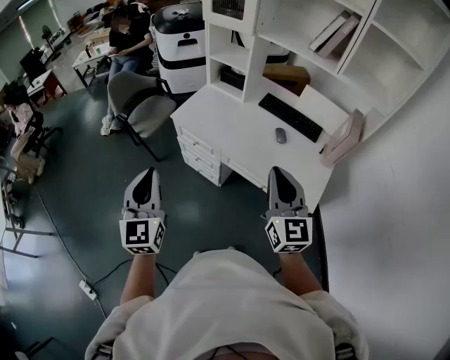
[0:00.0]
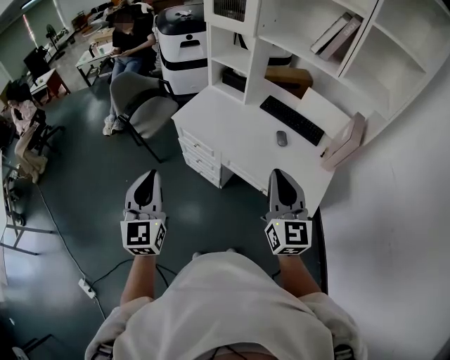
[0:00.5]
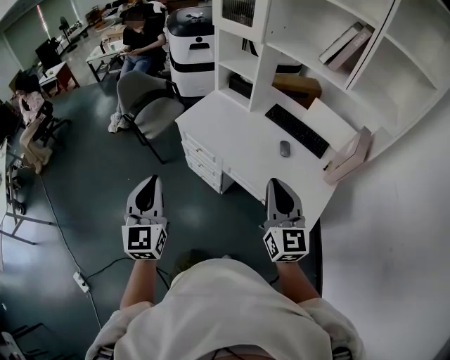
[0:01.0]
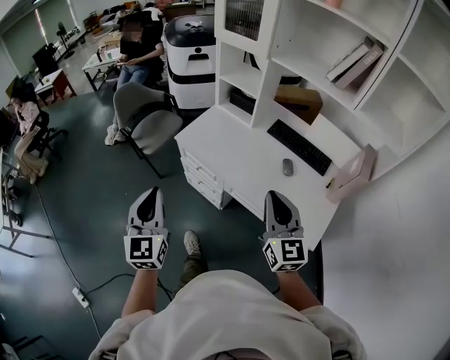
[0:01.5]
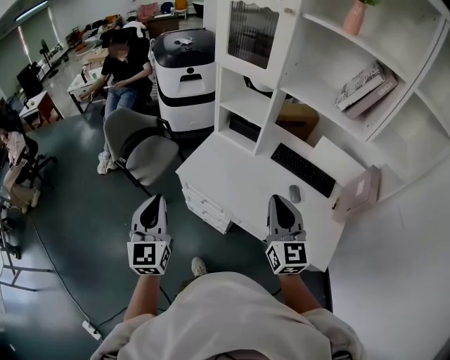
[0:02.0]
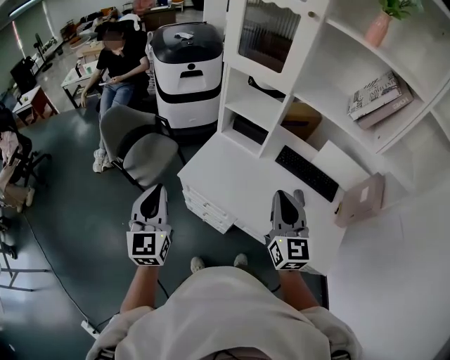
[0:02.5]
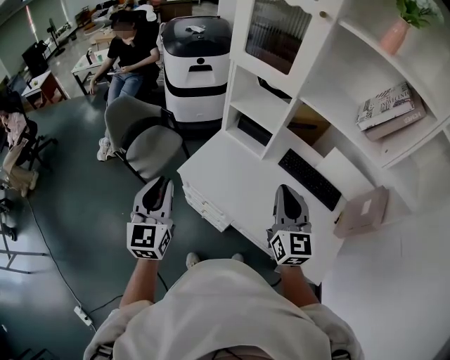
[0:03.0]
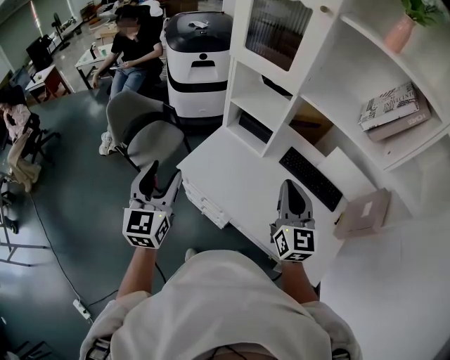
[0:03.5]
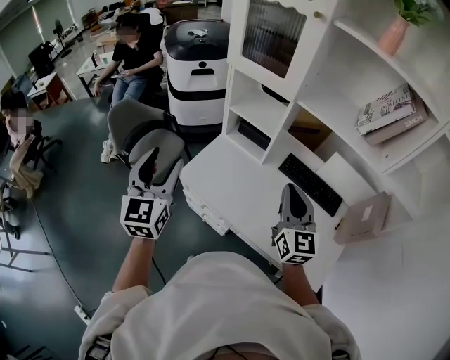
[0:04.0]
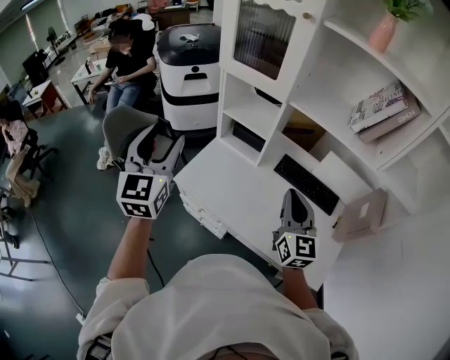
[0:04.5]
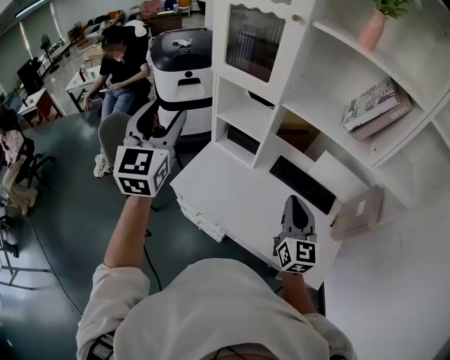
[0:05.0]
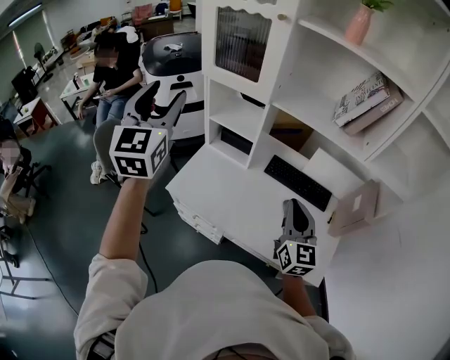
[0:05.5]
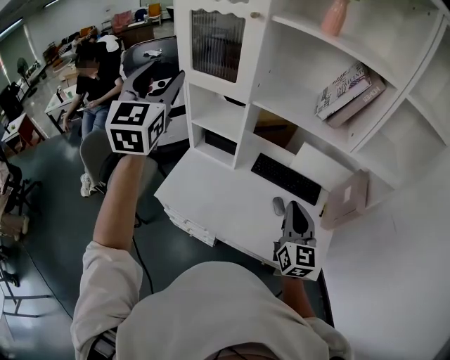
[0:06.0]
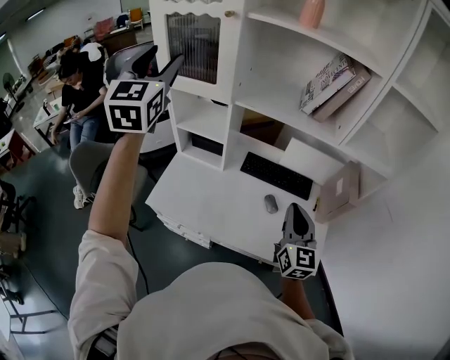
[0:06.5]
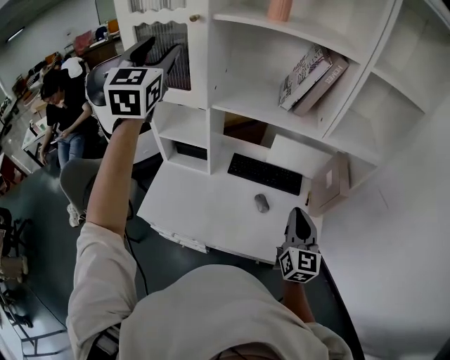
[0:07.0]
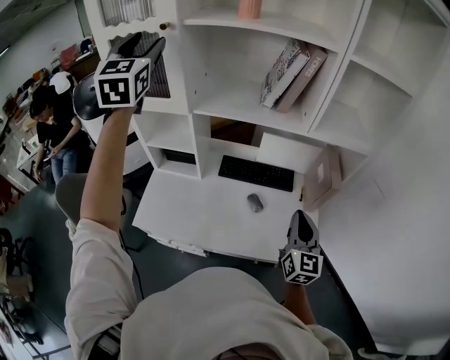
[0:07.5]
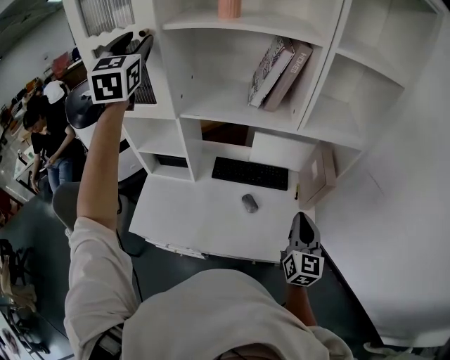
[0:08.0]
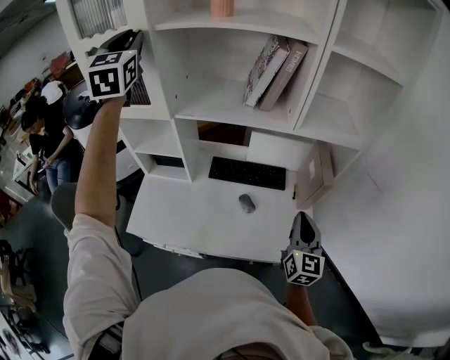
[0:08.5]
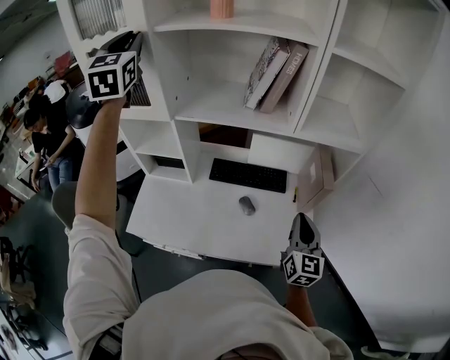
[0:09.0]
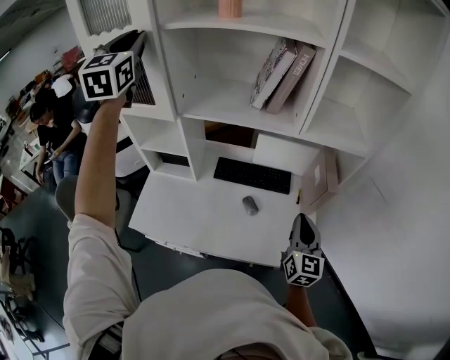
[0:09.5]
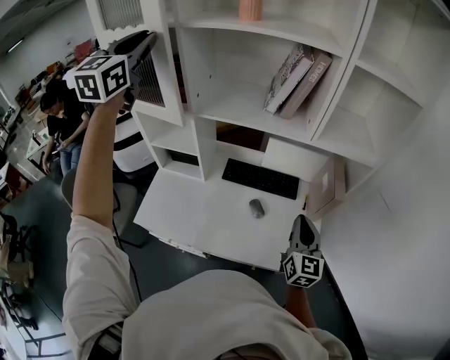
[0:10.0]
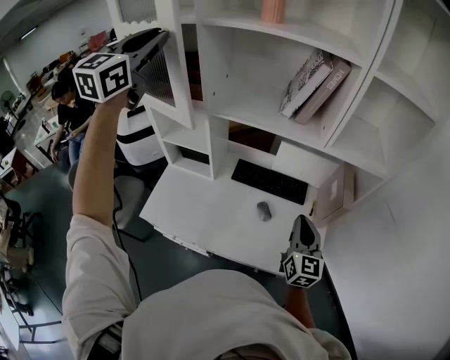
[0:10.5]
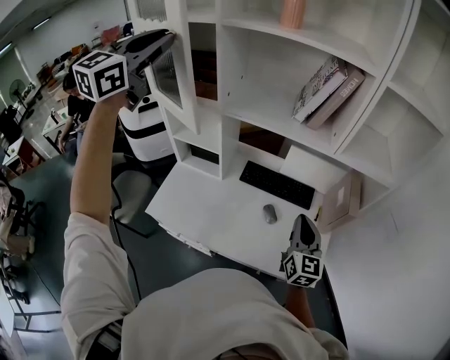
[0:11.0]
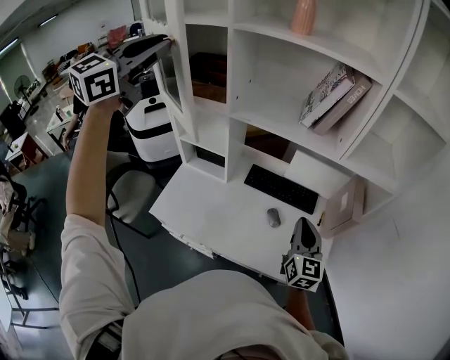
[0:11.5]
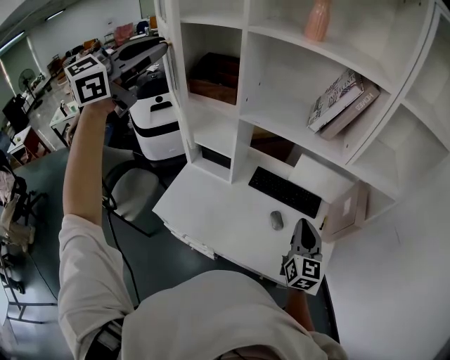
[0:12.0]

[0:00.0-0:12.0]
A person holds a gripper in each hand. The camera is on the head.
0:00.0 to 0:02.0: The two grippers go approximately 25 cm forward.
0:02.0 to 0:04.0: Both grippers move forward, some 15 cm. The left gripper opens its fingers.
0:04.0 to 0:06.0: The left gripper is displaced upward, forward and to the right by about 25 cm, while the right gripper shifts some 10 cm to the right and backward.
0:06.0 to 0:08.0: The left gripper shifts some 25 cm forward, to the right and upward; the right gripper moves to the right, about 15 cm, and rotates some 20 degrees.
0:08.0 to 0:10.0: The left gripper closes its fingers.
0:10.0 to 0:12.0: The left gripper travels backward and to the left by about 15 cm, and changes its angle by about 20 degrees; the right gripper is displaced to the left by approximately 10 cm.

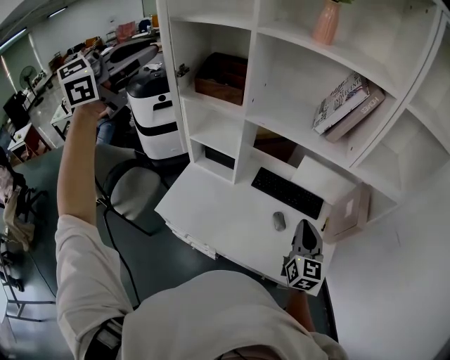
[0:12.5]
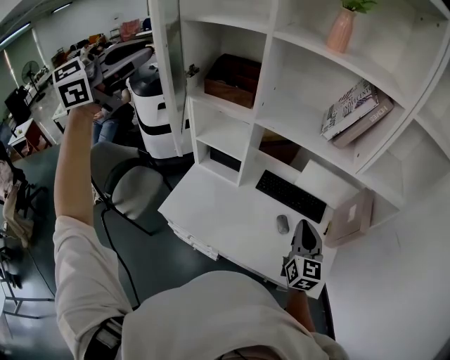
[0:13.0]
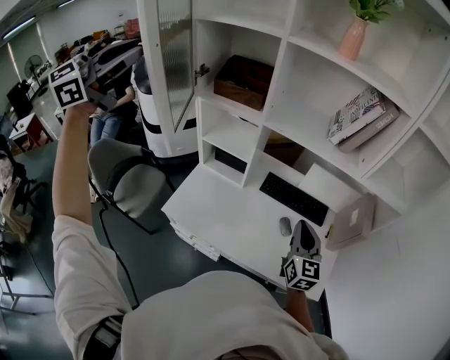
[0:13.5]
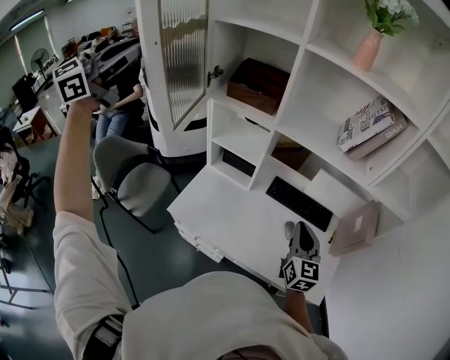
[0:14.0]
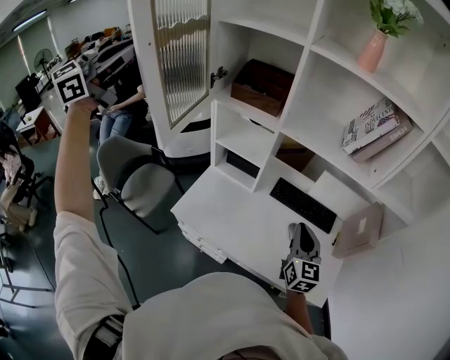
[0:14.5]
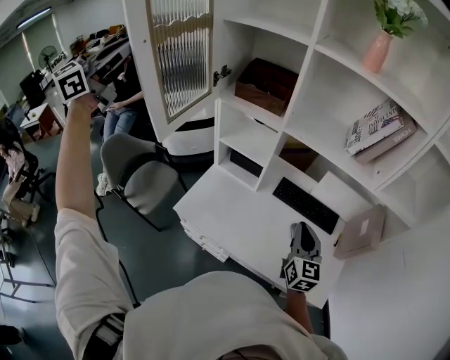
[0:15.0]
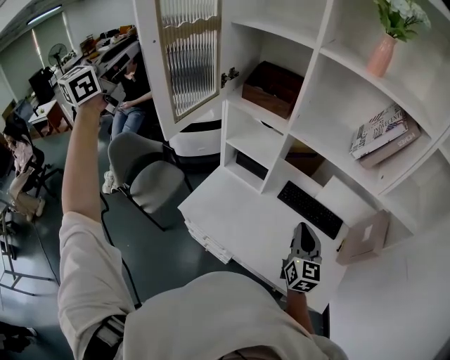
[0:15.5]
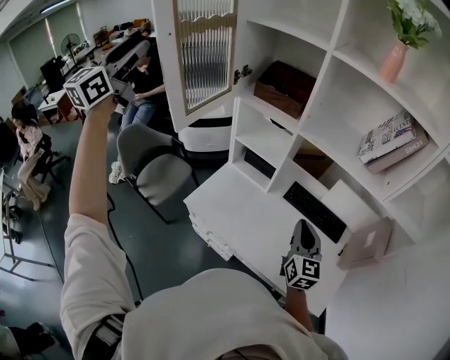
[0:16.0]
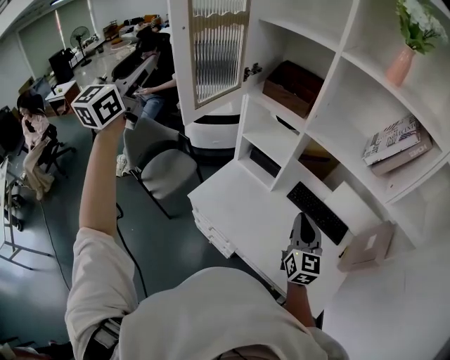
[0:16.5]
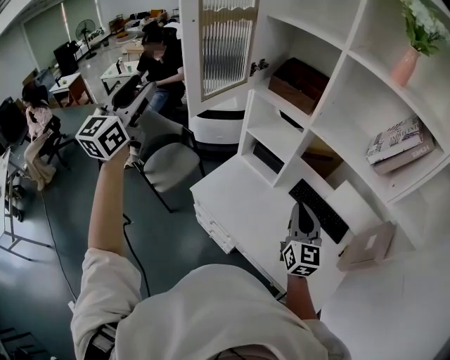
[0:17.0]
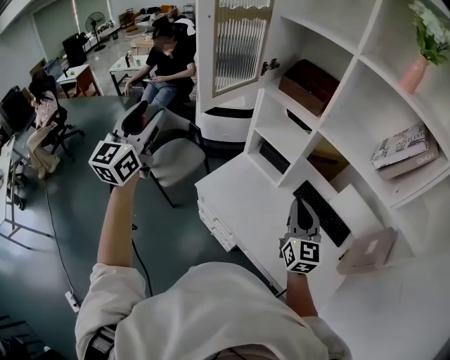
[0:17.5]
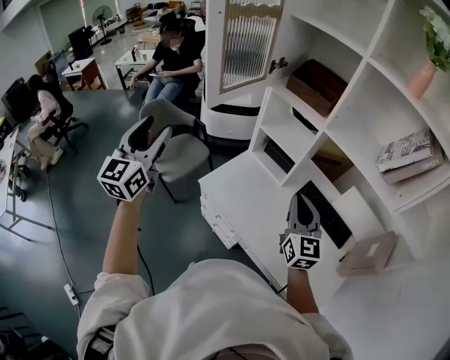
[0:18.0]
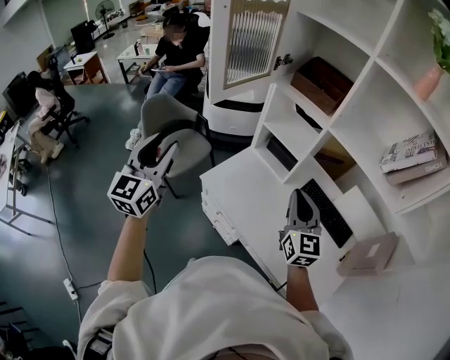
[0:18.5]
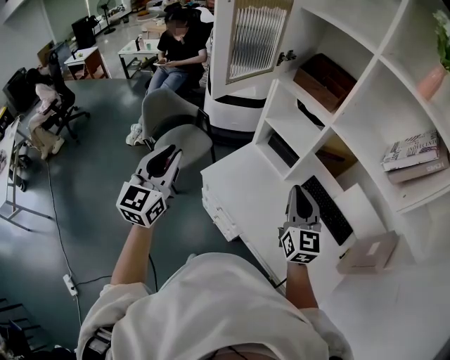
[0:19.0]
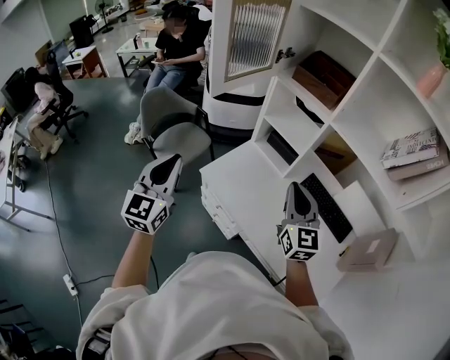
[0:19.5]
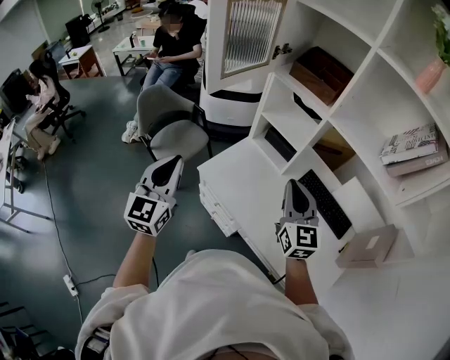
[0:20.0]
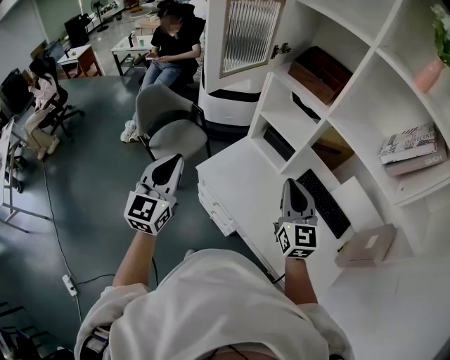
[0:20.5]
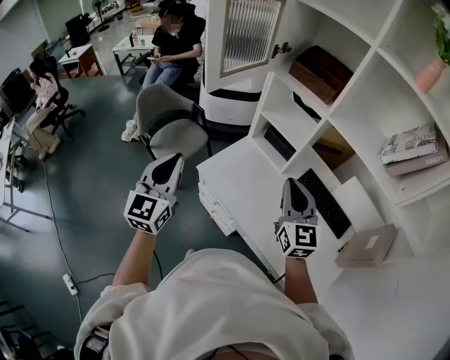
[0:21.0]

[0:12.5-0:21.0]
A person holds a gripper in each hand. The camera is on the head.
0:12.5 to 0:14.5: The right gripper heads to the left, covering roughly 10 cm. Meanwhile the left gripper moves to the left, approximately 15 cm.
0:14.5 to 0:16.5: The right gripper moves to the left, some 5 cm. The left gripper travels backward by approximately 10 cm, changes its angle by about 40 degrees, and opens its fingers.
0:16.5 to 0:19.0: The right gripper travels to the left by approximately 10 cm, while the left gripper goes about 30 cm downward and backward, and closes its fingers.
0:19.0 to 0:21.0: The grippers move only a little.

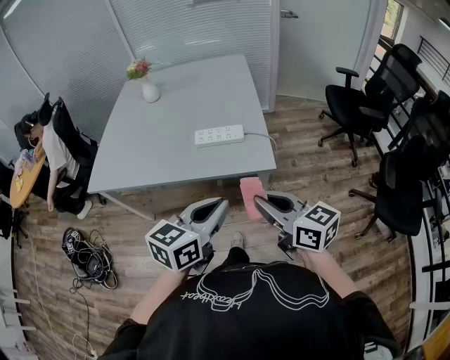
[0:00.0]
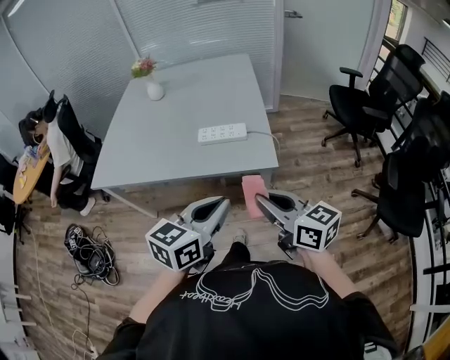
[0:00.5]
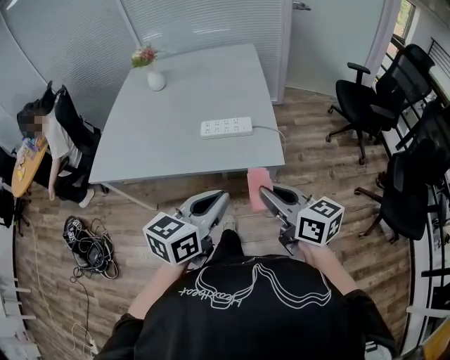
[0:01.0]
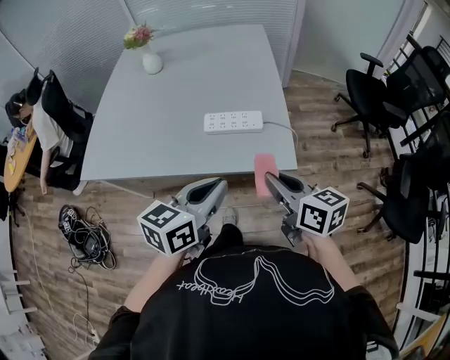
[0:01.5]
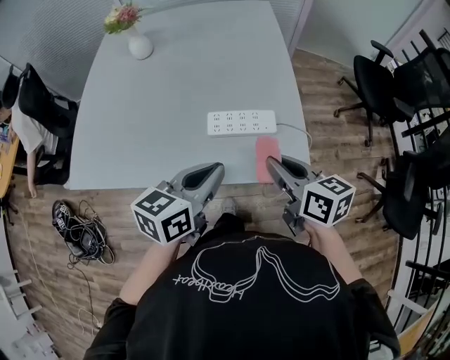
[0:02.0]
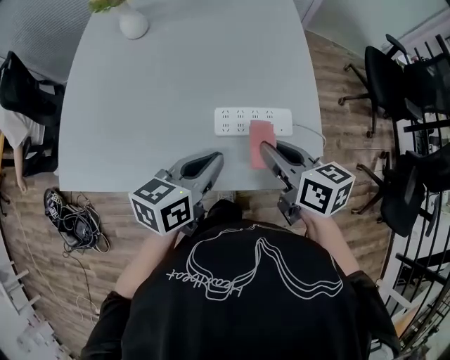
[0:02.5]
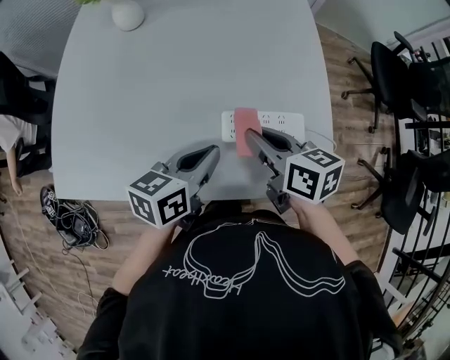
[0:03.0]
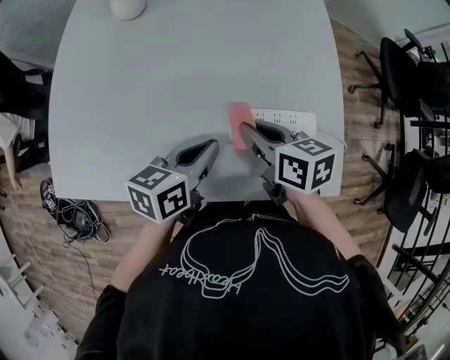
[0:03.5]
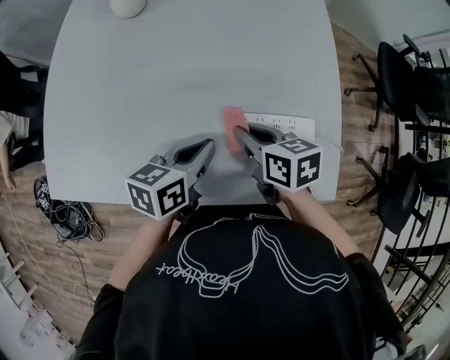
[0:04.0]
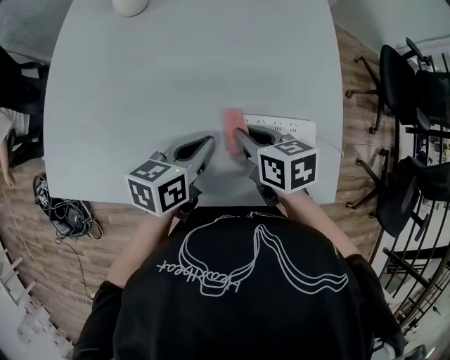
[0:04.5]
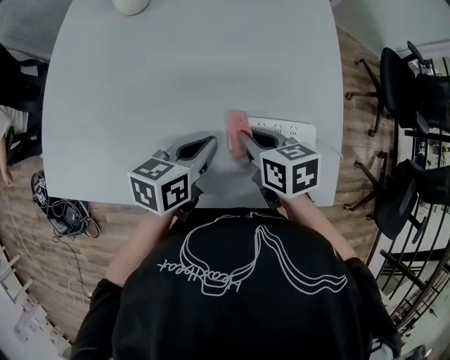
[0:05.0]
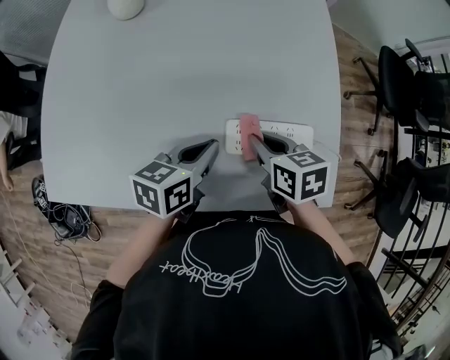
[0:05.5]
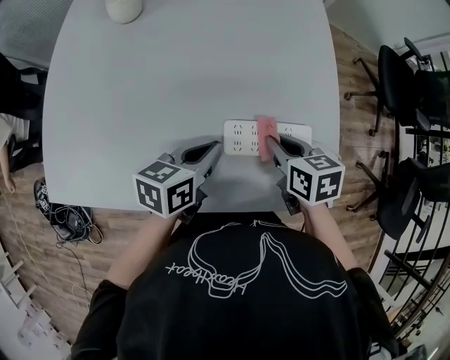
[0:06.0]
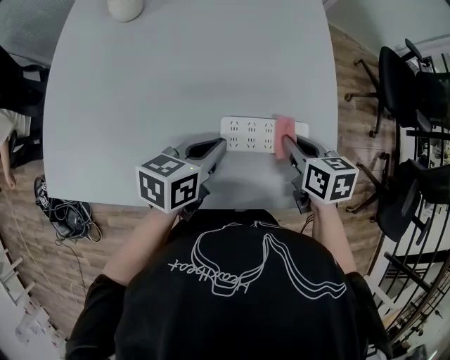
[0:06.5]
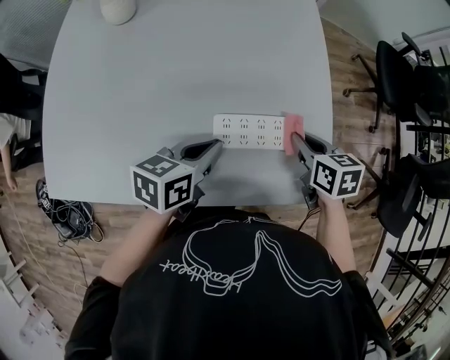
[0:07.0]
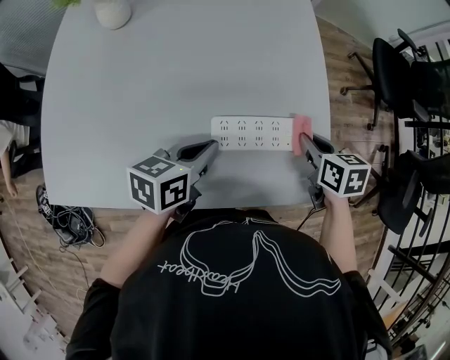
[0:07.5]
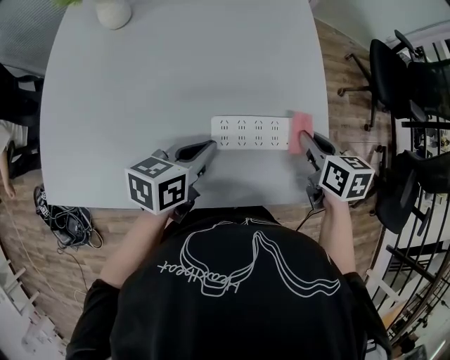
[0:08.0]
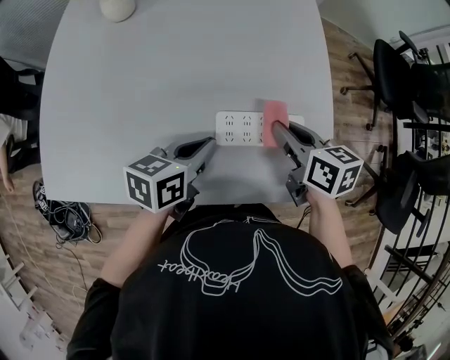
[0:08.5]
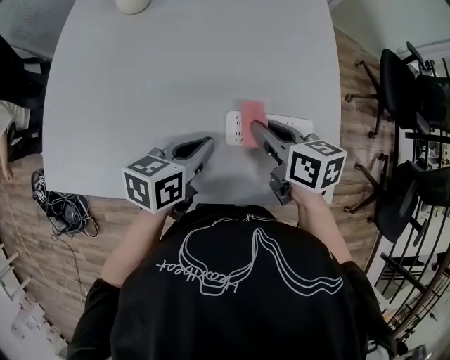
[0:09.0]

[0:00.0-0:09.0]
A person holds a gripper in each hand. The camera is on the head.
0:00.0 to 0:02.0: The right gripper goes approximately 25 cm forward, and turns by some 20 degrees; the left gripper heads forward and to the left, covering about 30 cm.
0:02.0 to 0:04.5: The right gripper goes approximately 30 cm forward, to the left and downward, and rotates about 20 degrees. Meanwhile the left gripper shifts about 25 cm forward, downward and to the left.
0:04.5 to 0:07.0: The right gripper goes approximately 20 cm to the right. The left gripper shifts some 5 cm to the right.
0:07.0 to 0:09.0: The right gripper goes approximately 15 cm to the left.
